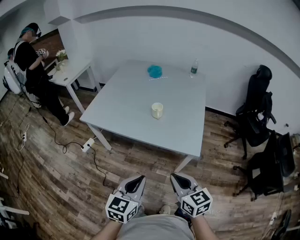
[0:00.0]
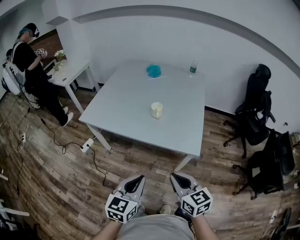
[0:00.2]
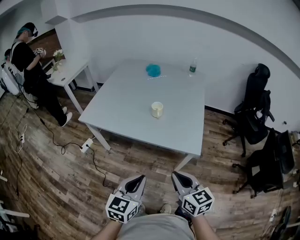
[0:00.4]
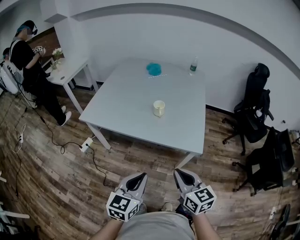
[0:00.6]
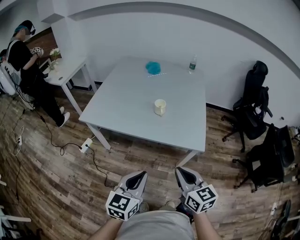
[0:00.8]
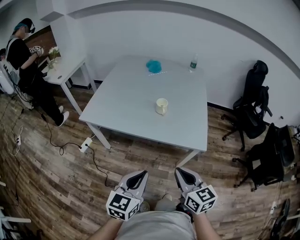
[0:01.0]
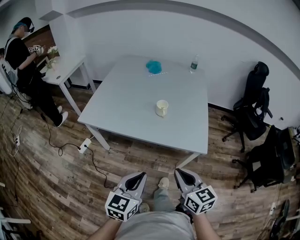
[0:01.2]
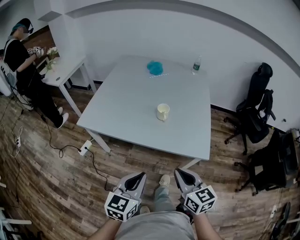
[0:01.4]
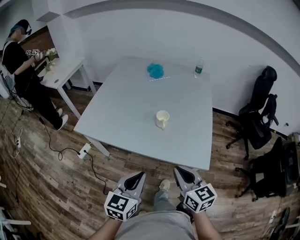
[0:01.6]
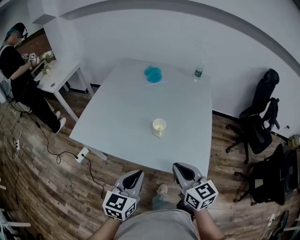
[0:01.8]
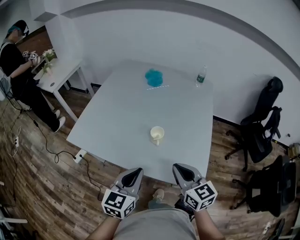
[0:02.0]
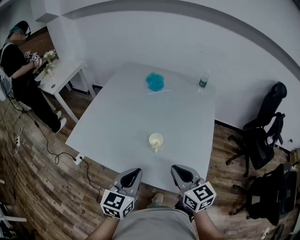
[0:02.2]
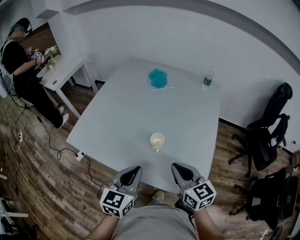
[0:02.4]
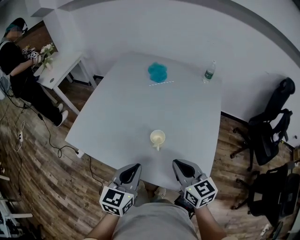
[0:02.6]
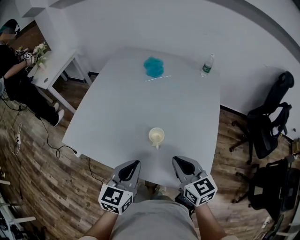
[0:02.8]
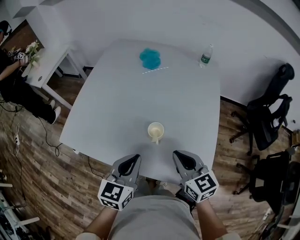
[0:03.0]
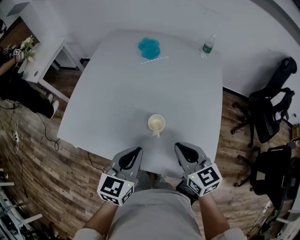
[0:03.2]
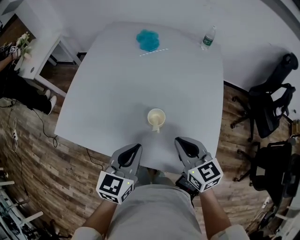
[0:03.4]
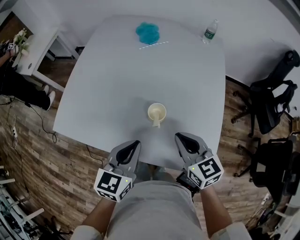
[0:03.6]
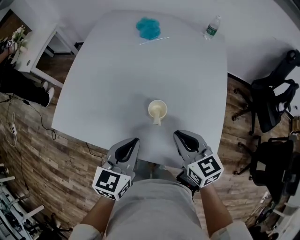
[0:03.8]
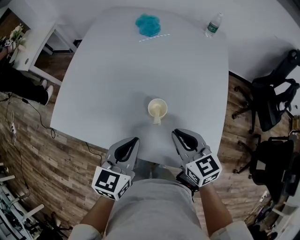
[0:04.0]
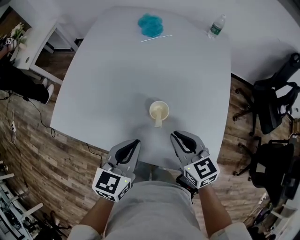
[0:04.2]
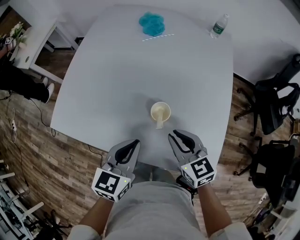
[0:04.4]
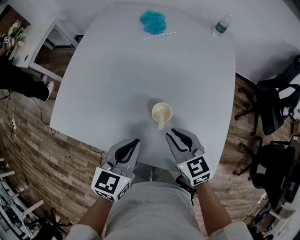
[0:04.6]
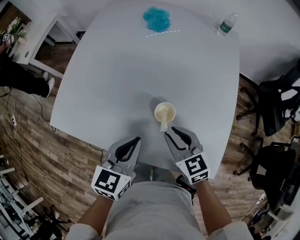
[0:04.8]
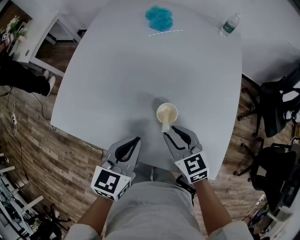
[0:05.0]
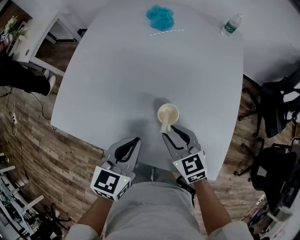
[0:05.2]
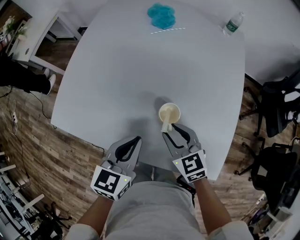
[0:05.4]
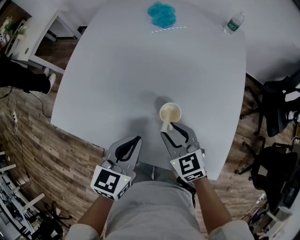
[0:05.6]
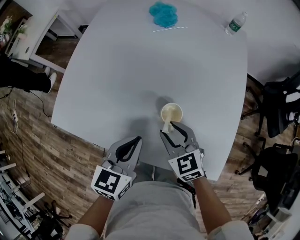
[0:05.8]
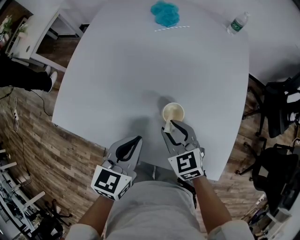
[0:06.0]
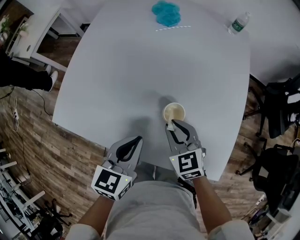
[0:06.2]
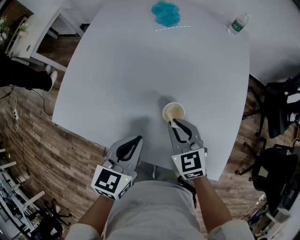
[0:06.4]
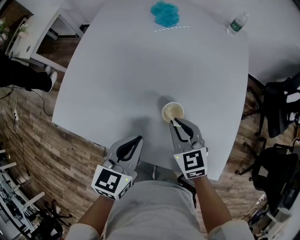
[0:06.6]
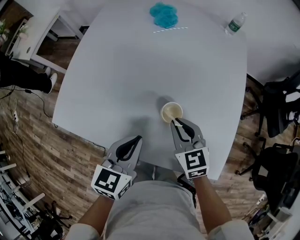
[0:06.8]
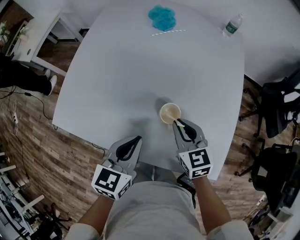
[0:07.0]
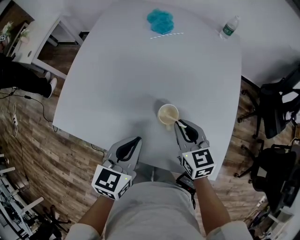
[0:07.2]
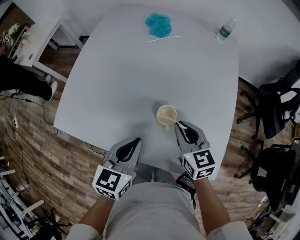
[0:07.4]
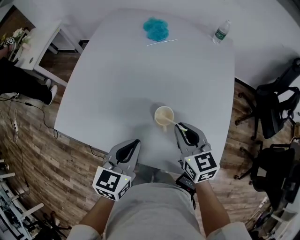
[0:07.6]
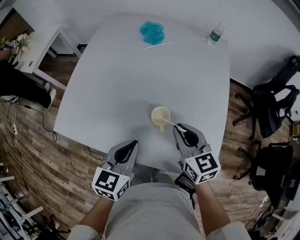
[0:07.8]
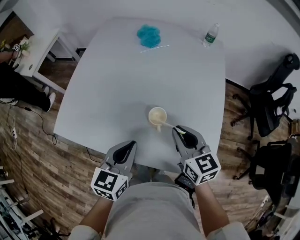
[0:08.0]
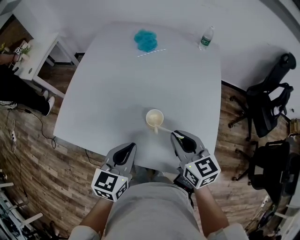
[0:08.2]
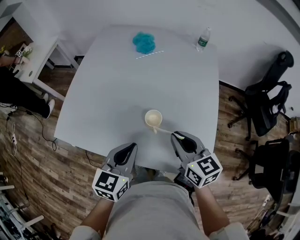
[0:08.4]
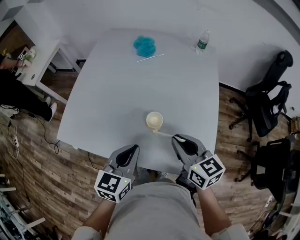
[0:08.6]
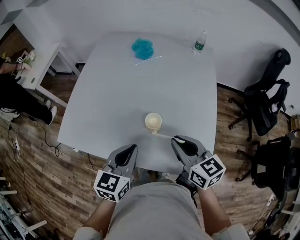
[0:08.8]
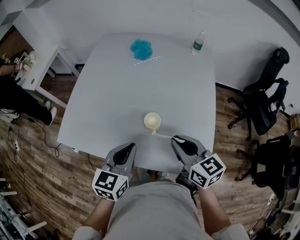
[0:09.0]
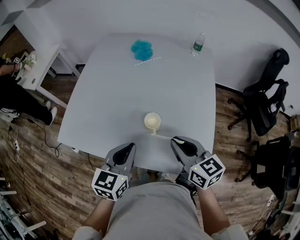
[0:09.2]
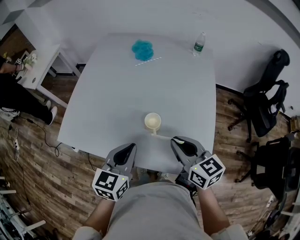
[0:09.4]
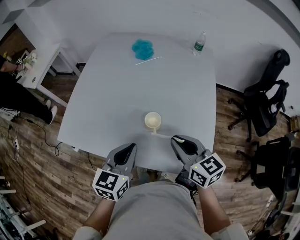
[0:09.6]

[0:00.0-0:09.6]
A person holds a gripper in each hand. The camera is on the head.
0:00.0 to 0:01.6: The left gripper moves forward and to the left, approximately 15 cm. The right gripper goes some 15 cm forward.
0:01.6 to 0:03.2: Both grippers move forward, some 25 cm.
0:03.2 to 0:04.8: The right gripper moves downward and to the left, about 10 cm, and opens up, while the left gripper shifts roughly 5 cm downward.
0:04.8 to 0:06.4: The grippers stay close to where they were, moving slightly.
0:06.4 to 0:08.0: The right gripper moves upward and to the right, about 10 cm, and rotates about 20 degrees. Meanwhile the left gripper changes place by about 5 cm.
0:08.0 to 0:09.6: The right gripper ends up about 5 cm from where it was.

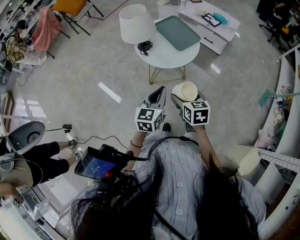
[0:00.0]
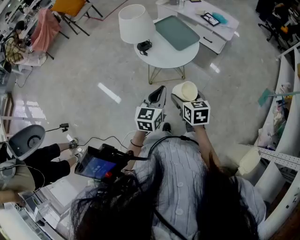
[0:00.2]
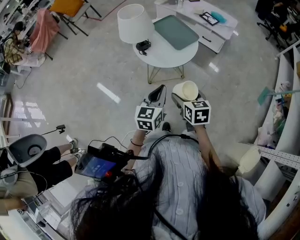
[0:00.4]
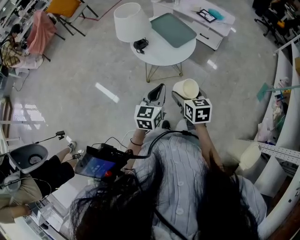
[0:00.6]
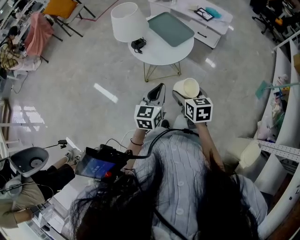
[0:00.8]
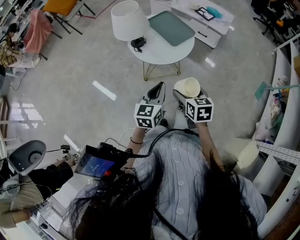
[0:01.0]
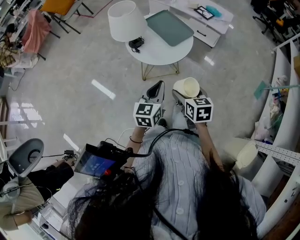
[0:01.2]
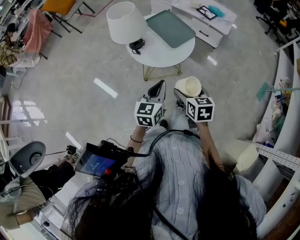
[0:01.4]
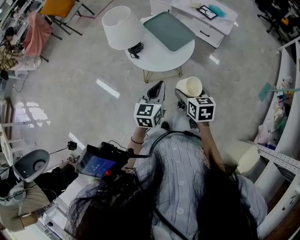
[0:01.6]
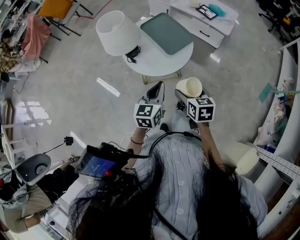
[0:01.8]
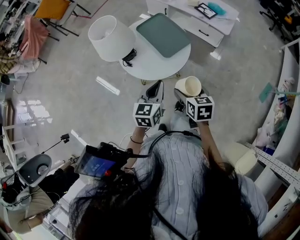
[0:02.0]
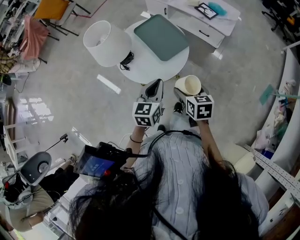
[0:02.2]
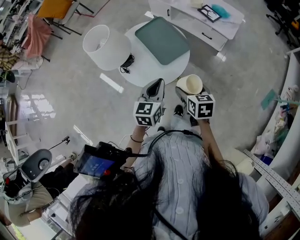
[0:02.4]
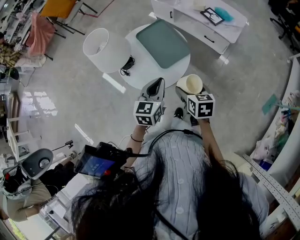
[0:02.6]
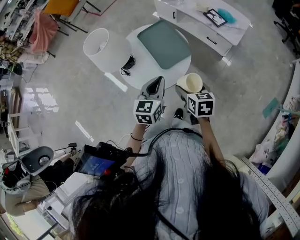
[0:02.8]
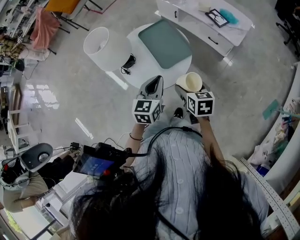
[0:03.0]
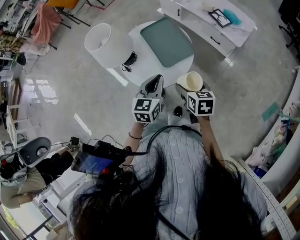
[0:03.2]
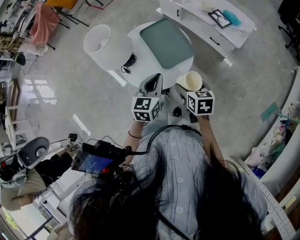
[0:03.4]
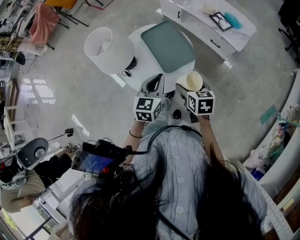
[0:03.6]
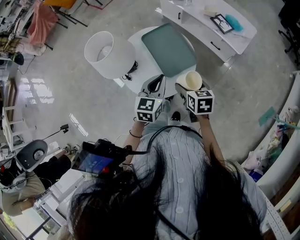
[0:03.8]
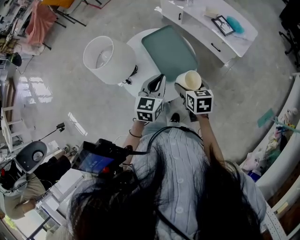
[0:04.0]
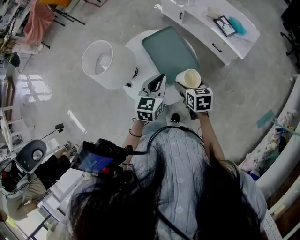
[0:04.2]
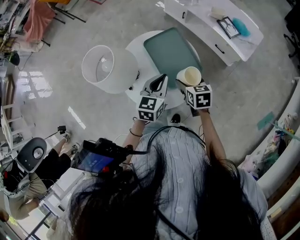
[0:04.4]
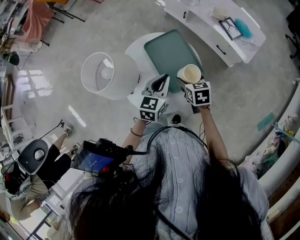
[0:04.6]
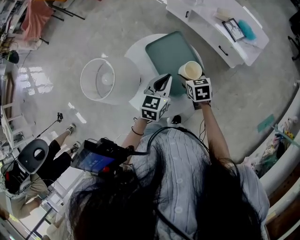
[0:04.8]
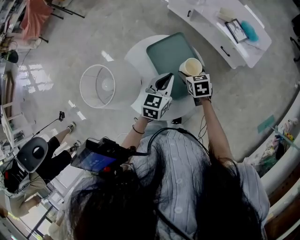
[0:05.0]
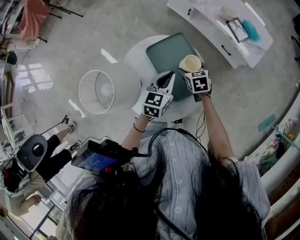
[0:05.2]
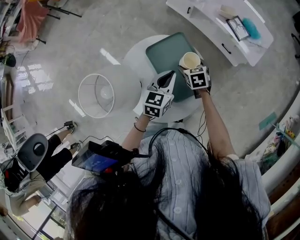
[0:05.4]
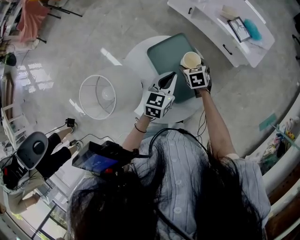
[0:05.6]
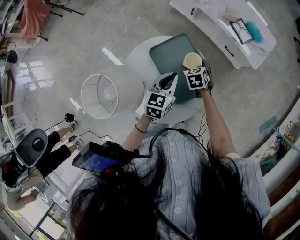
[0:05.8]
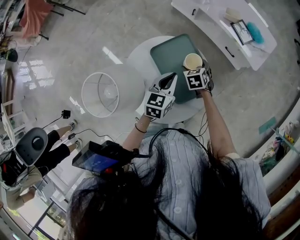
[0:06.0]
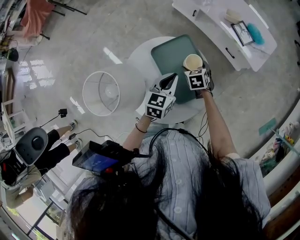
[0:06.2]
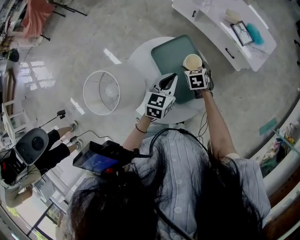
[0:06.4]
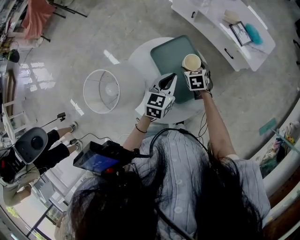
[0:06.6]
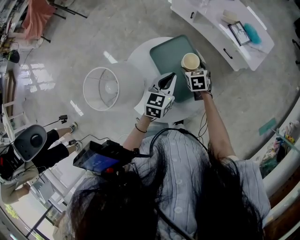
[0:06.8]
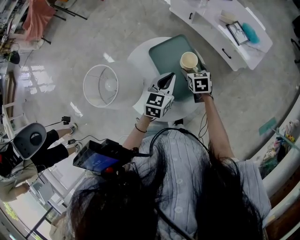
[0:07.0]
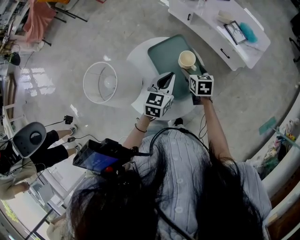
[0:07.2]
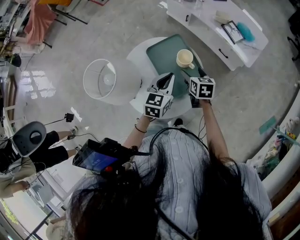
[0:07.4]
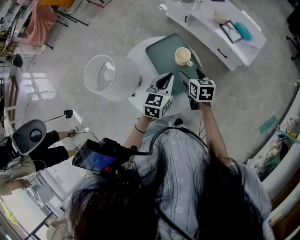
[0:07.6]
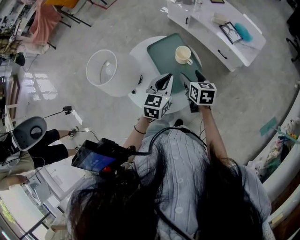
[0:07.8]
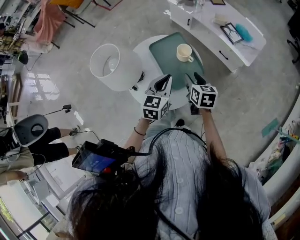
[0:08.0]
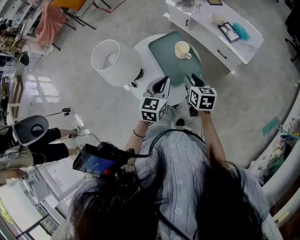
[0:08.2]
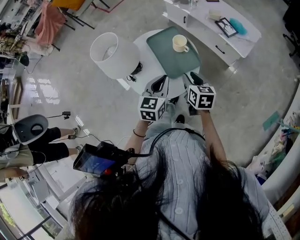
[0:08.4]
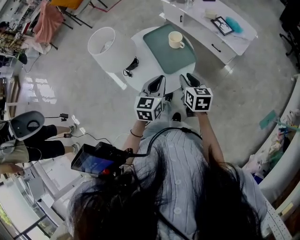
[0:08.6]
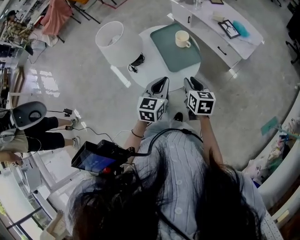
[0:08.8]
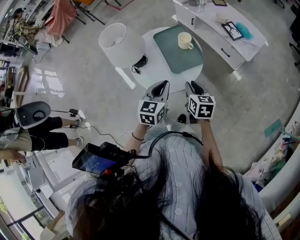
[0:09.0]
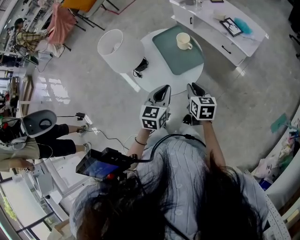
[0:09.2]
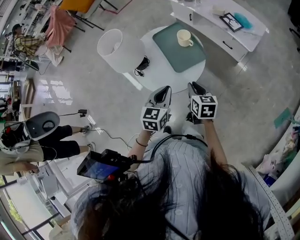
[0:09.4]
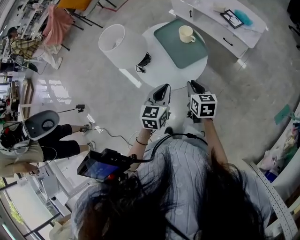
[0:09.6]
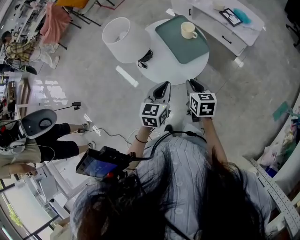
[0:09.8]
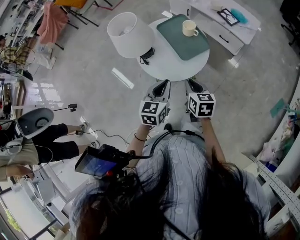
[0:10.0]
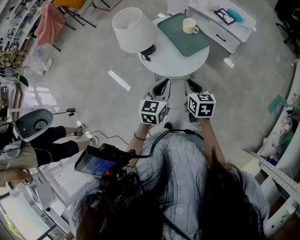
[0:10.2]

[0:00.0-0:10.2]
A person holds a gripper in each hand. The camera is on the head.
0:00.0 to 0:01.4: The left gripper shifts by some 5 cm; the right gripper ends up roughly 5 cm from where it was.
0:01.4 to 0:03.0: The two grippers go roughly 20 cm forward and to the right.
0:03.0 to 0:04.4: Both grippers travel together forward, about 15 cm.
0:04.4 to 0:05.8: The right gripper moves forward and downward, approximately 20 cm. The left gripper shifts about 10 cm forward and downward.
0:05.8 to 0:07.2: The right gripper goes some 5 cm upward, and swivels approximately 20 degrees.
0:07.2 to 0:08.8: The right gripper shifts approximately 25 cm backward and upward, and closes up, while the left gripper goes approximately 20 cm backward.
0:08.8 to 0:10.2: The grippers both shift to the left and backward by about 15 cm.

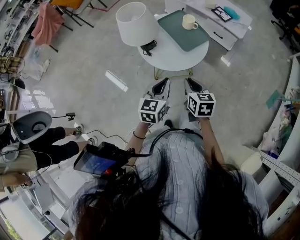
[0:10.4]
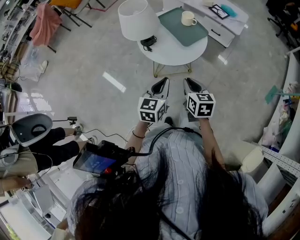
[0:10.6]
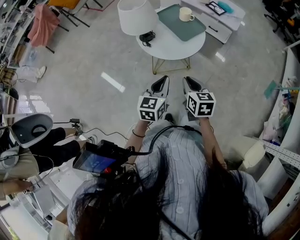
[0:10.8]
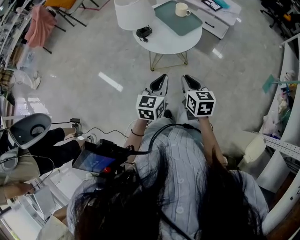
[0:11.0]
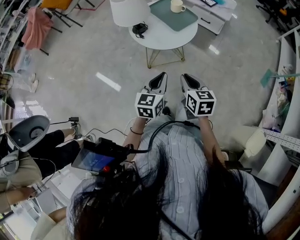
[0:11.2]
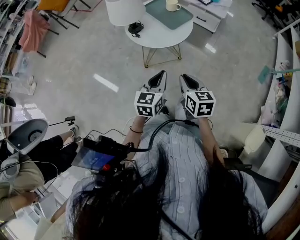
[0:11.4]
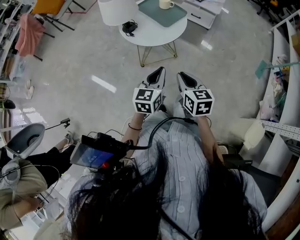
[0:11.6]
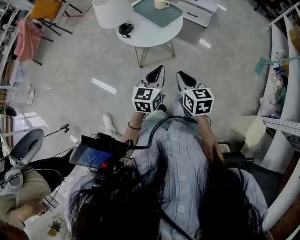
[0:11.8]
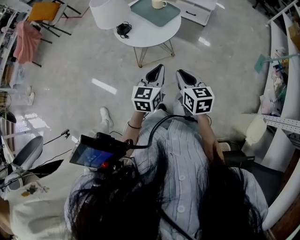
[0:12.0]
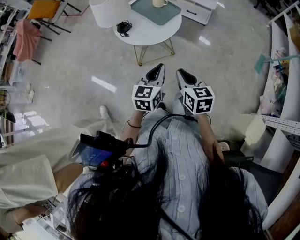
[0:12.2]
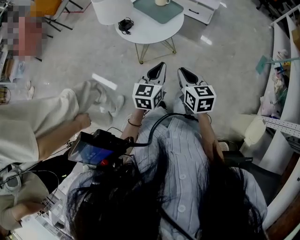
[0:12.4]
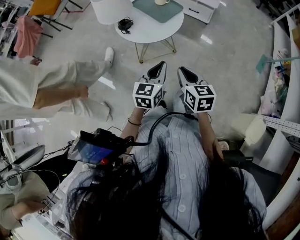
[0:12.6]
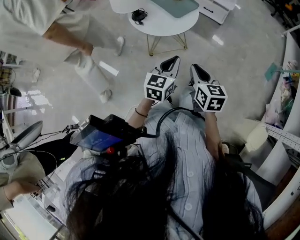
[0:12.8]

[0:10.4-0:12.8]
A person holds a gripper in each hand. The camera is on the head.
0:10.4 to 0:11.6: The two grippers go approximately 15 cm backward.
0:11.6 to 0:12.8: The grippers move only a little.

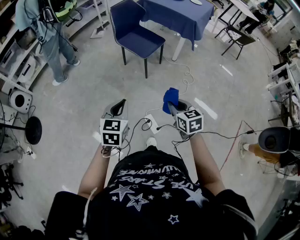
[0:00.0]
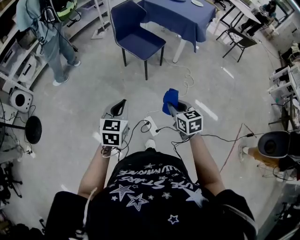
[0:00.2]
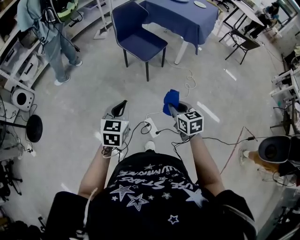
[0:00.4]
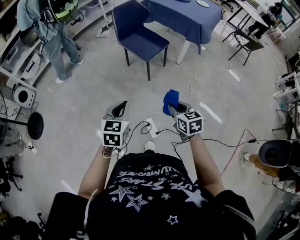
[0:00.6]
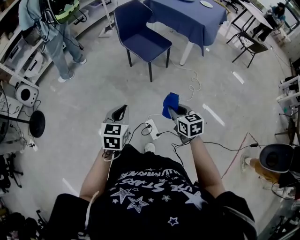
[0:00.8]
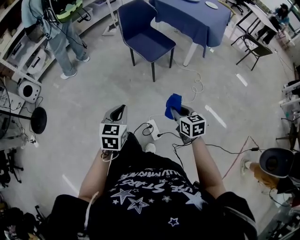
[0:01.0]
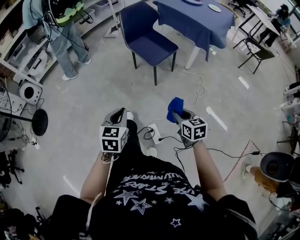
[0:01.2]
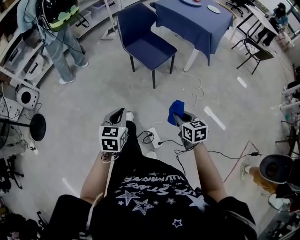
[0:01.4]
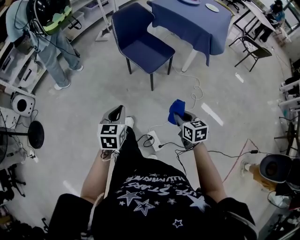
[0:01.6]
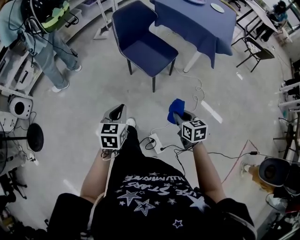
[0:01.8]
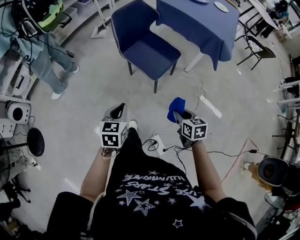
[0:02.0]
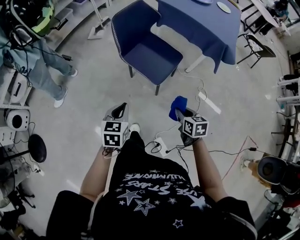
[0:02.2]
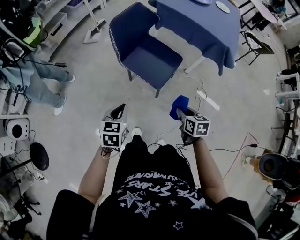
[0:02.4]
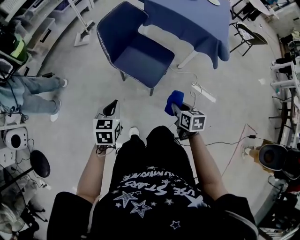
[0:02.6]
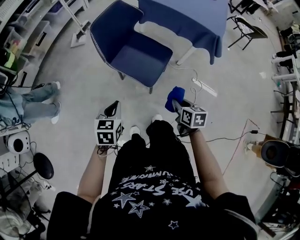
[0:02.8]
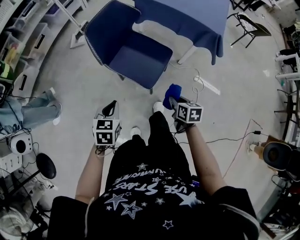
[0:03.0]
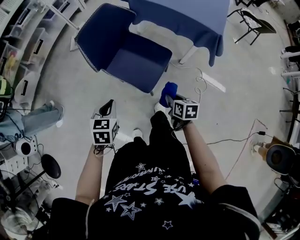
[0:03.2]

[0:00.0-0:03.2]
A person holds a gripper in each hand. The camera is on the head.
0:00.0 to 0:01.6: The right gripper shifts roughly 15 cm forward and to the right. The left gripper is displaced forward by roughly 20 cm.
0:01.6 to 0:03.2: The grippers both shift forward by some 35 cm. The right gripper changes its angle by approximately 30 degrees.
